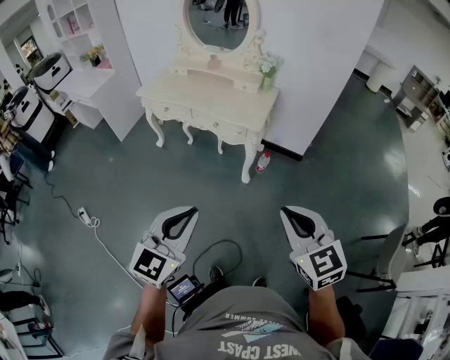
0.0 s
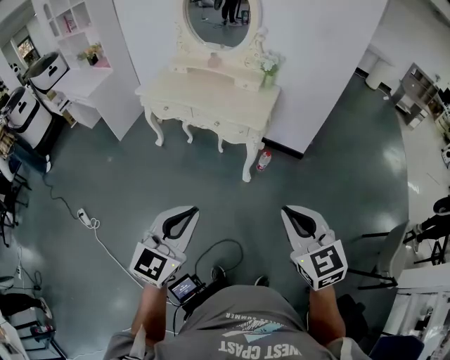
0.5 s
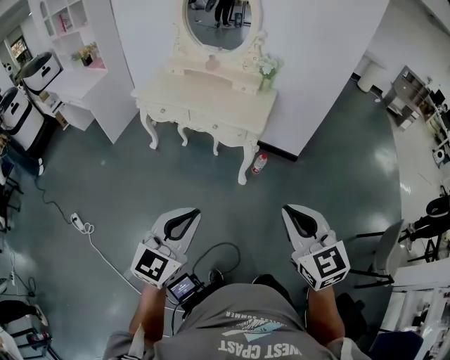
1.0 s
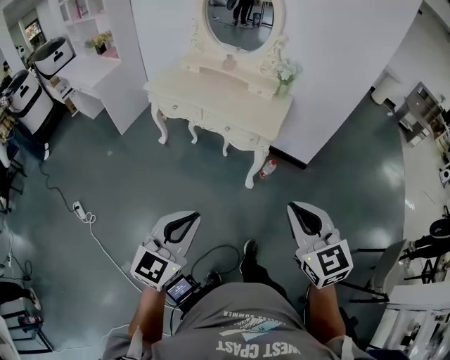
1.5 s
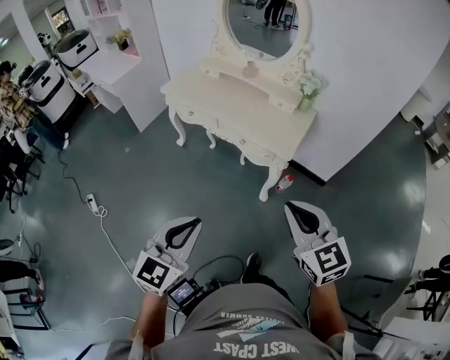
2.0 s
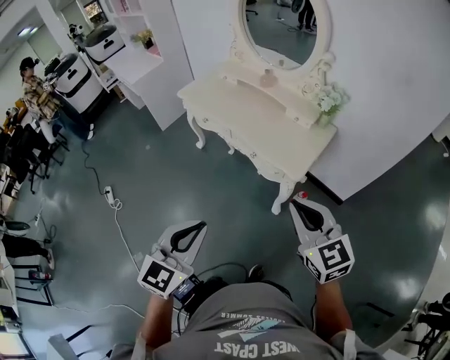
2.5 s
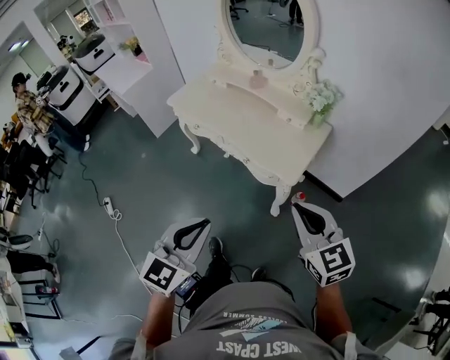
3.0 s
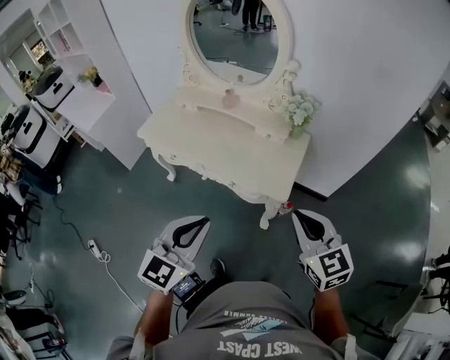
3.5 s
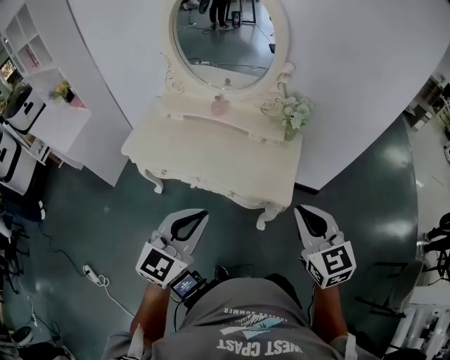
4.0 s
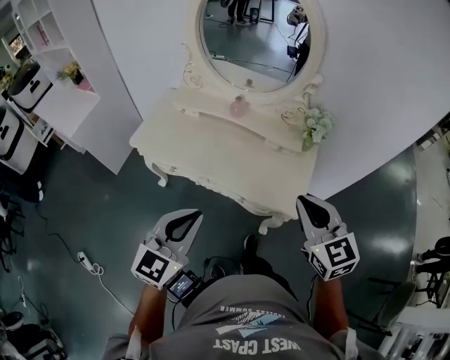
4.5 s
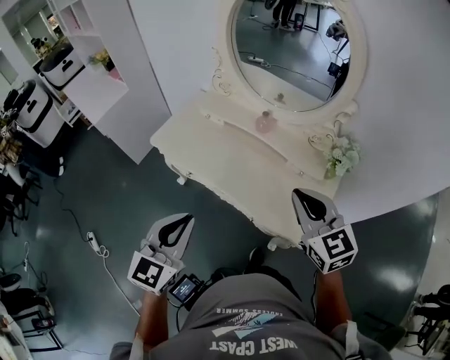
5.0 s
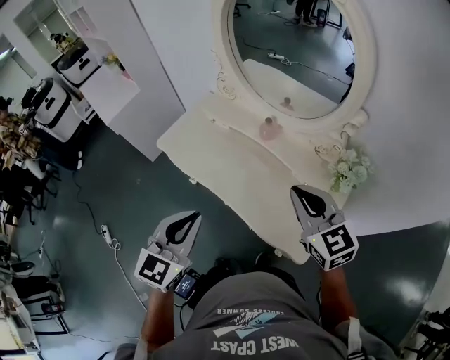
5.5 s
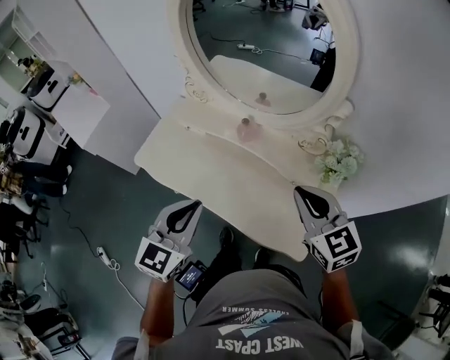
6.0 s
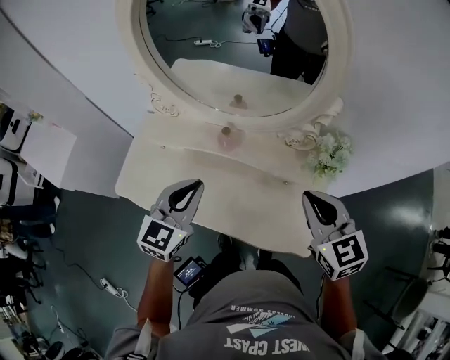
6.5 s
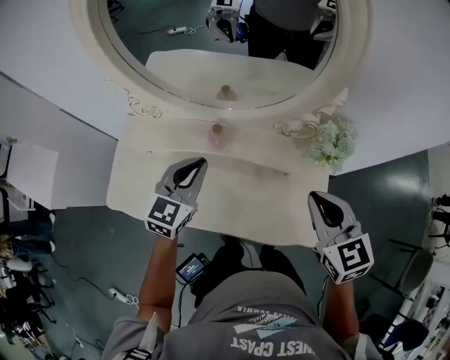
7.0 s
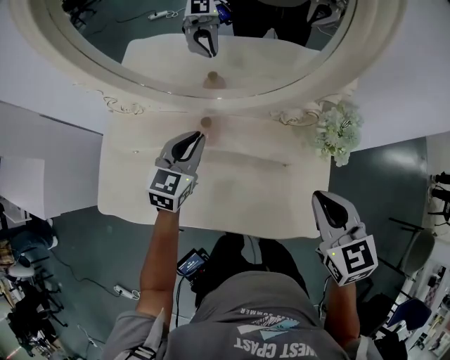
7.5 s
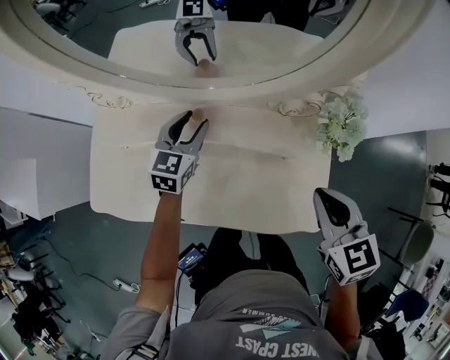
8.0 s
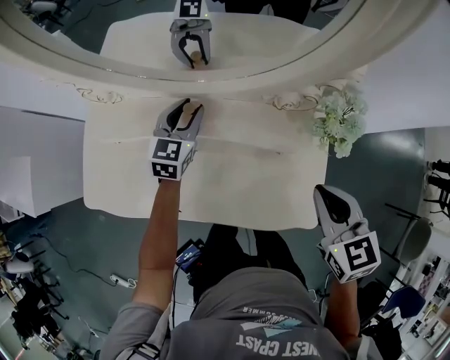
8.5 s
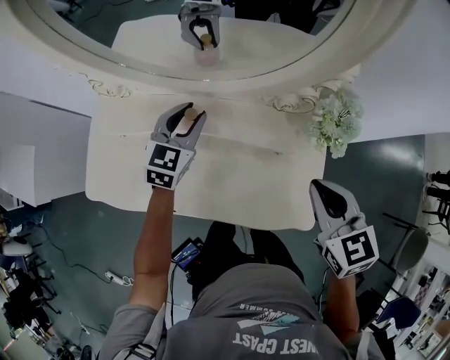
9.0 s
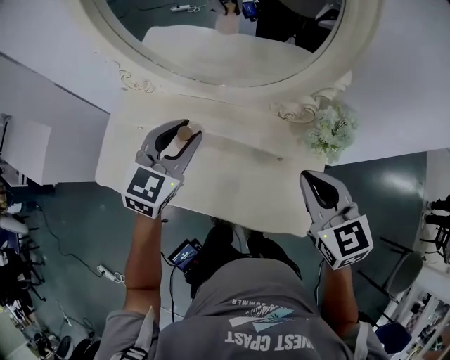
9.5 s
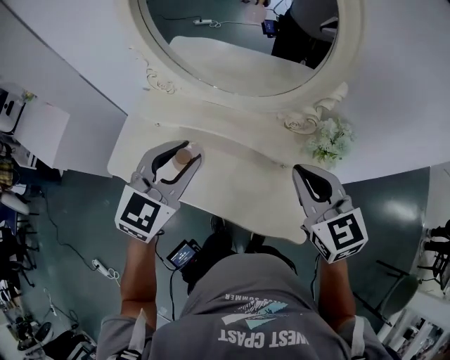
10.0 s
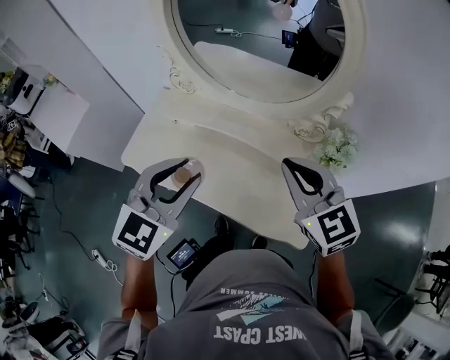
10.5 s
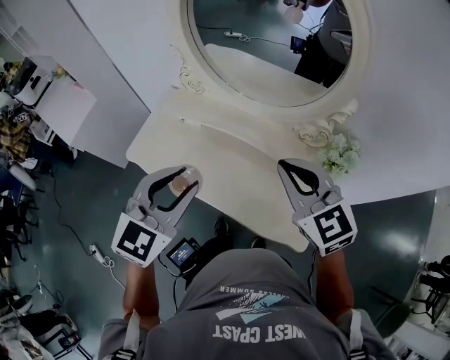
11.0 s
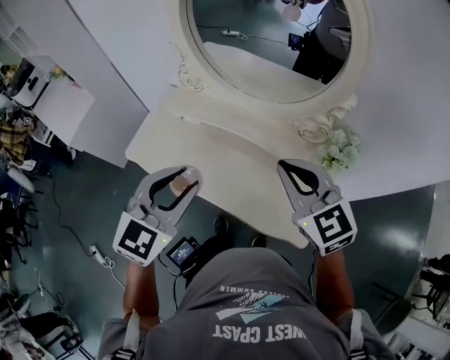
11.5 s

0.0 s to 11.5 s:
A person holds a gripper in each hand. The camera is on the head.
0.0 to 2.0 s: The two grippers go some 20 cm forward.
2.0 to 4.0 s: The left gripper ends up about 40 cm from where it was; the right gripper moves approximately 30 cm, and changes its angle by some 20 degrees.
4.0 to 6.0 s: The left gripper ends up about 30 cm from where it was. Meanwhile the right gripper changes place by roughly 35 cm.
6.0 to 7.5 s: The right gripper heads downward and forward, covering about 10 cm, and rotates roughly 30 degrees, while the left gripper goes roughly 35 cm forward and downward, and changes its angle by approximately 20 degrees.
7.5 to 9.5 s: The left gripper travels upward and backward by roughly 10 cm, and opens its fingers.
9.5 to 11.5 s: The left gripper moves backward and upward, about 25 cm; the right gripper goes approximately 15 cm to the left and upward, and turns by some 30 degrees.

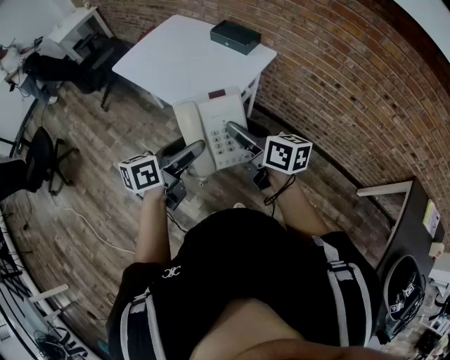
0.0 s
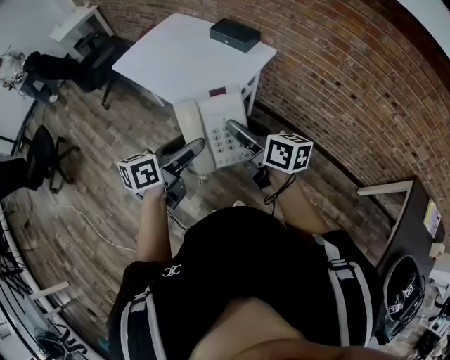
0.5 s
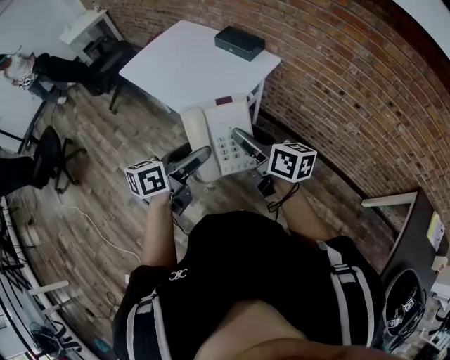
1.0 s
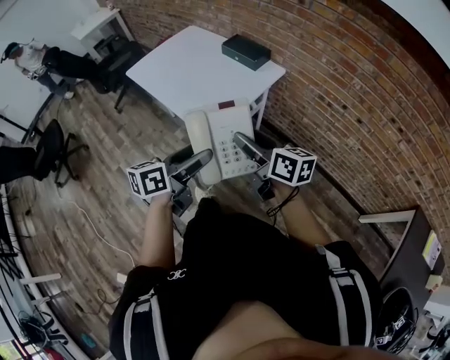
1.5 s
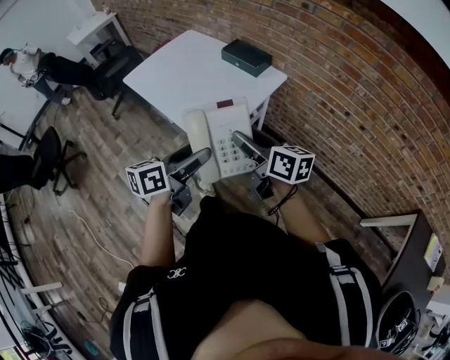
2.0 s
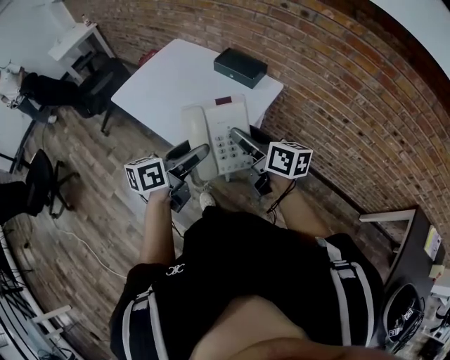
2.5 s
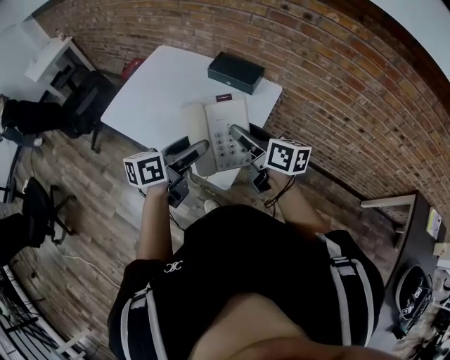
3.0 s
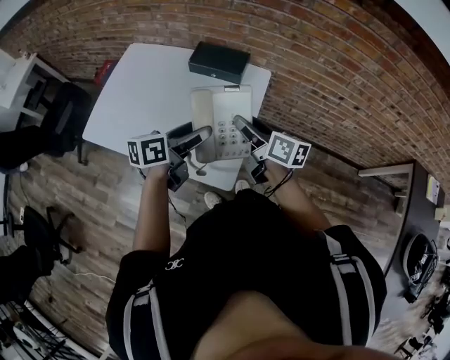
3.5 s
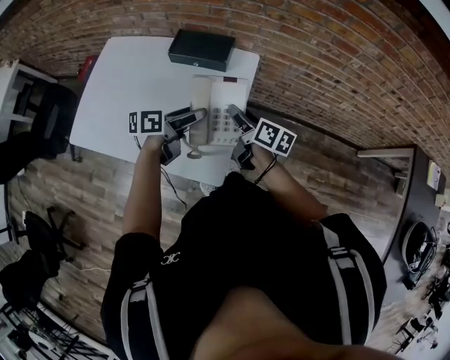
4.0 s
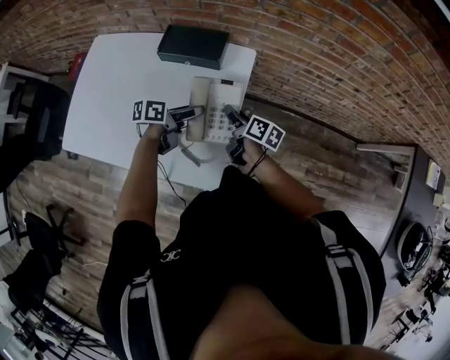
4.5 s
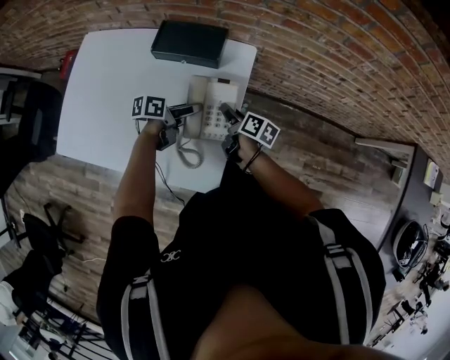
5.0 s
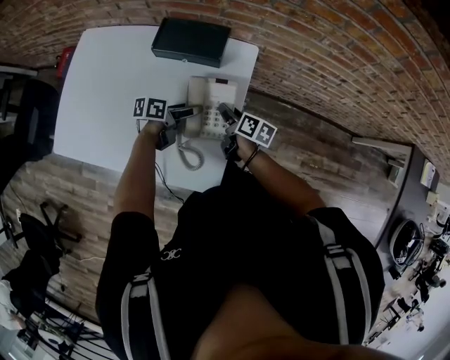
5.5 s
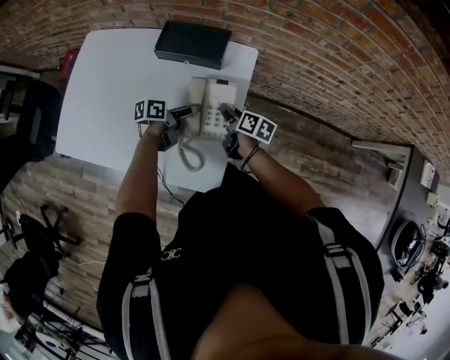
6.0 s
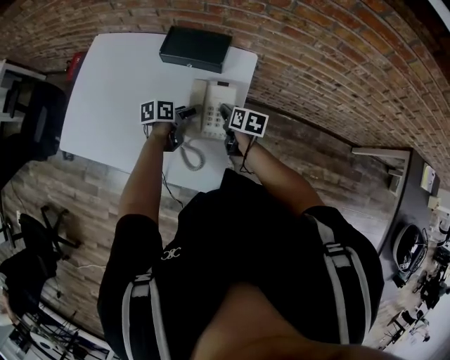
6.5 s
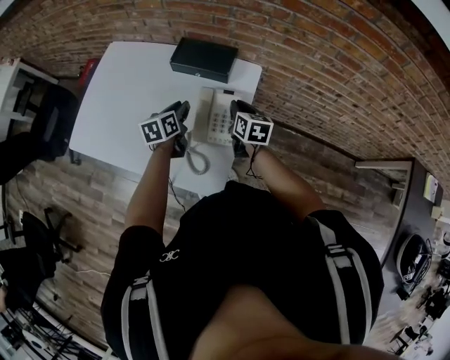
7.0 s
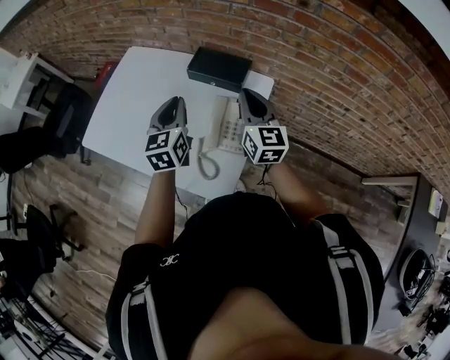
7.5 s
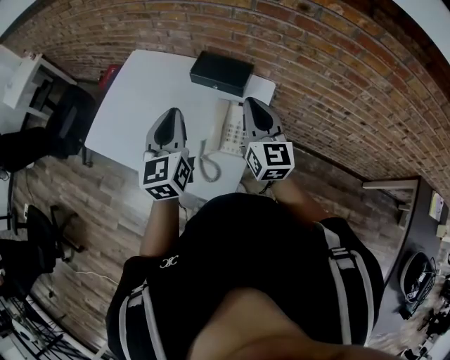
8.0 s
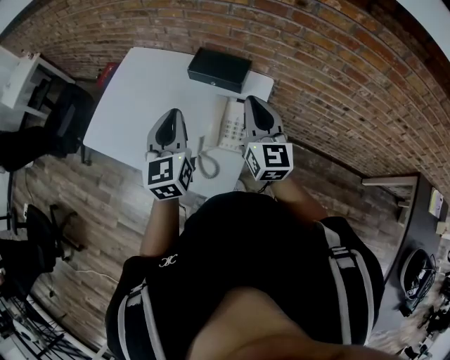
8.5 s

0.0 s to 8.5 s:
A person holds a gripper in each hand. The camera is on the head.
0.0 to 2.0 s: Both grippers travel together forward, some 5 cm.
2.0 to 4.0 s: The right gripper changes place by approximately 30 cm, and swivels roughly 40 degrees. Meanwhile the left gripper moves some 40 cm, and turns by roughly 40 degrees.
4.0 to 6.5 s: Both grippers move downward and forward, approximately 15 cm. The right gripper turns by about 30 degrees.
6.5 to 8.5 s: Both grippers move upward, some 30 cm. The left gripper swivels about 70 degrees, and closes up, while the right gripper tips its fingers upward by some 40 degrees, and closes up.

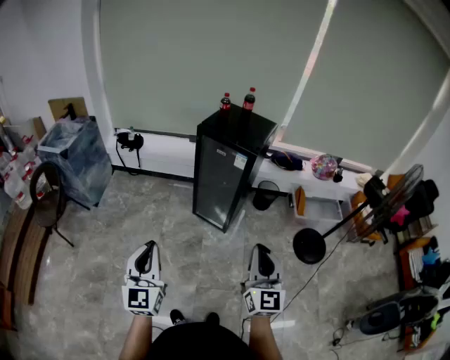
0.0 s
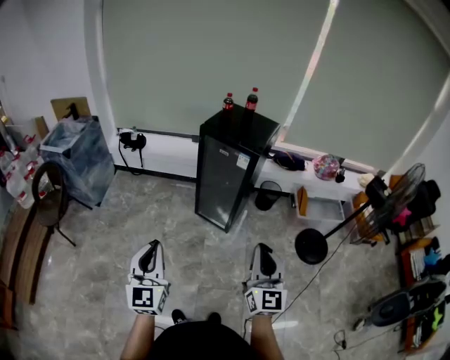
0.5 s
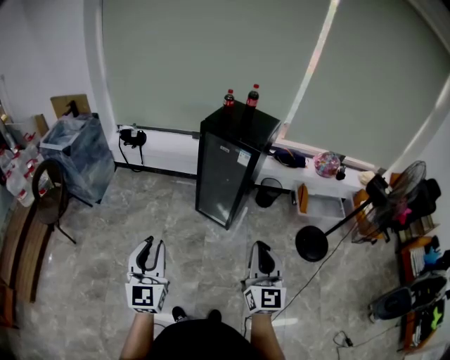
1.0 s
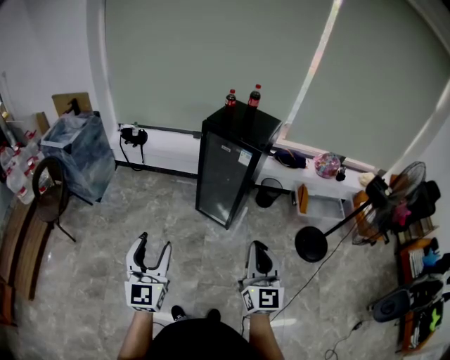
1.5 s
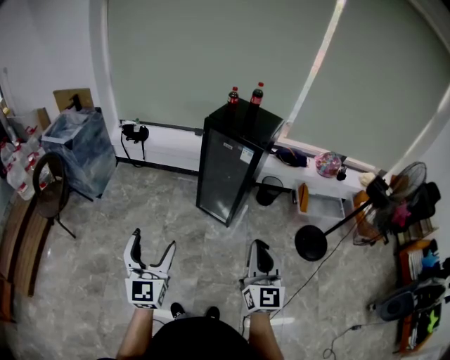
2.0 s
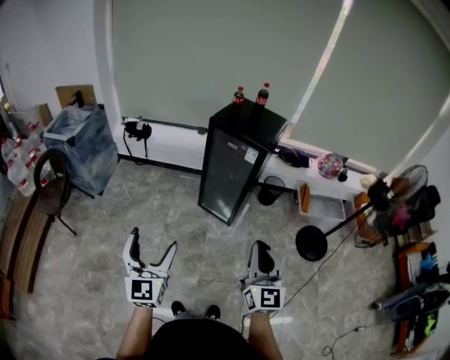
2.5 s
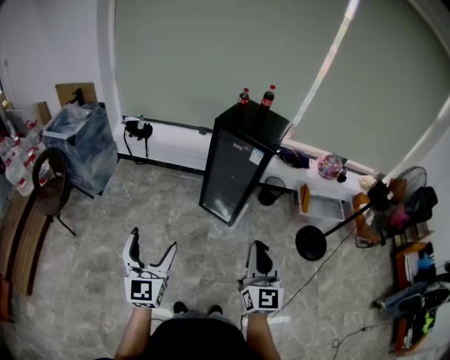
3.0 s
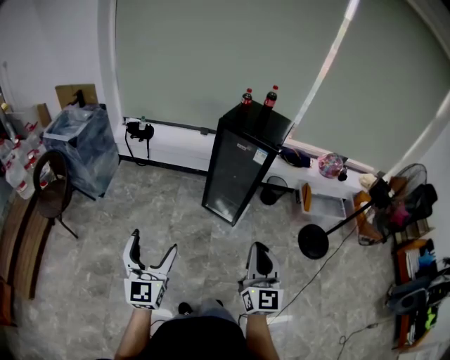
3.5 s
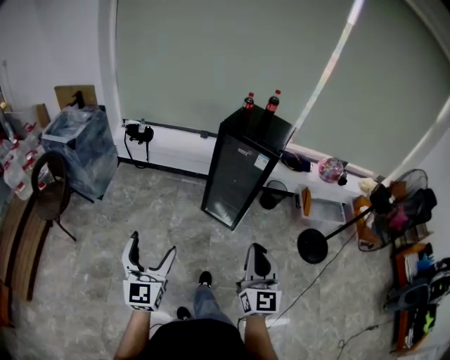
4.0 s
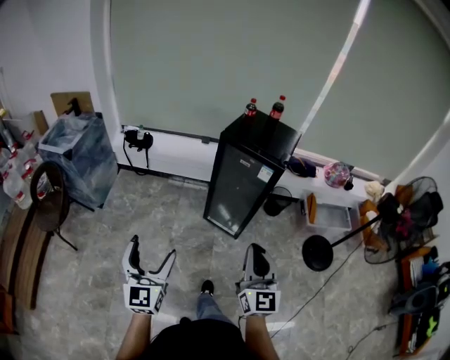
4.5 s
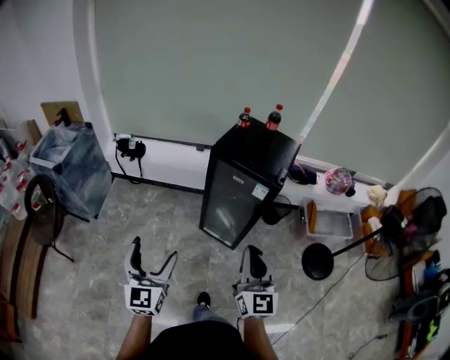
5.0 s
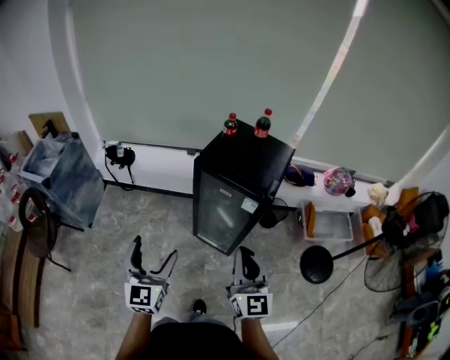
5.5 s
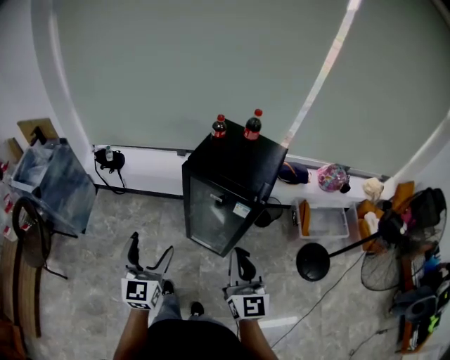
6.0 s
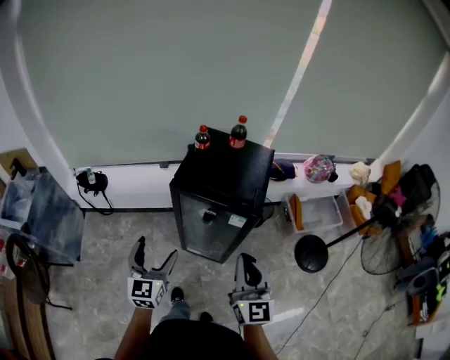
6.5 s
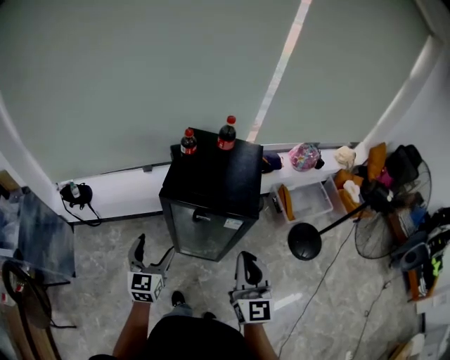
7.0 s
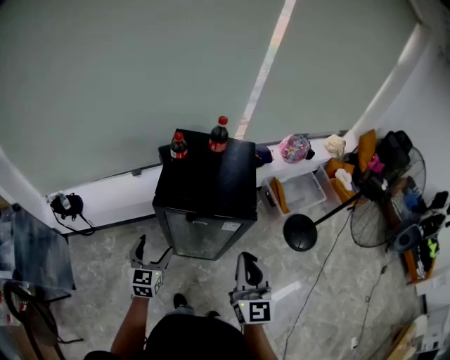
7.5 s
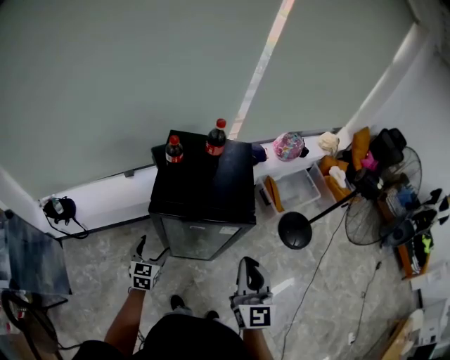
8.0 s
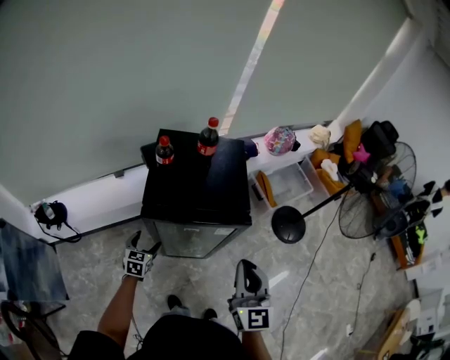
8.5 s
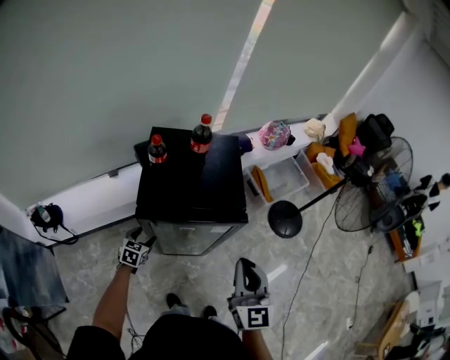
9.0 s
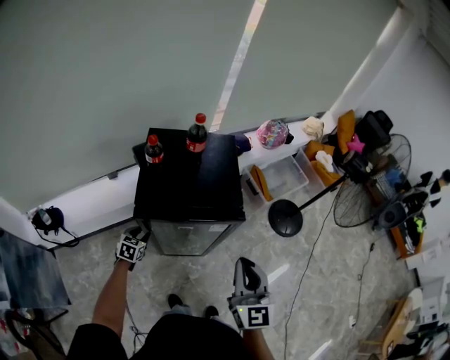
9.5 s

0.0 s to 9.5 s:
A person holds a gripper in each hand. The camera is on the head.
0.0 to 2.0 s: The left gripper opens up.
2.0 to 4.0 s: Both grippers travel together to the left, roughly 10 cm.
4.0 to 5.5 s: The grippers both shift forward by approximately 30 cm.
5.5 to 7.5 s: The right gripper shifts by roughly 10 cm, and changes its angle by roughly 30 degrees. The left gripper moves about 30 cm, and rotates approximately 30 degrees.
7.5 to 9.5 s: The left gripper is displaced downward and forward by roughly 20 cm, turns by approximately 30 degrees, and closes.
